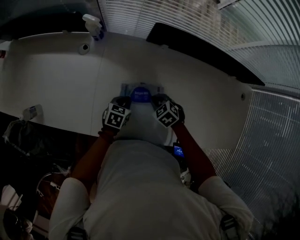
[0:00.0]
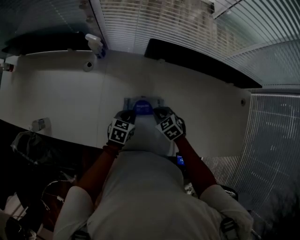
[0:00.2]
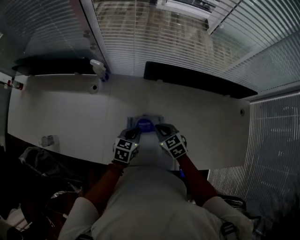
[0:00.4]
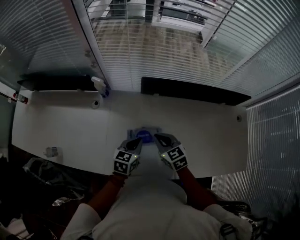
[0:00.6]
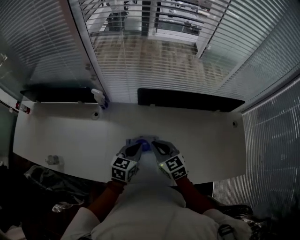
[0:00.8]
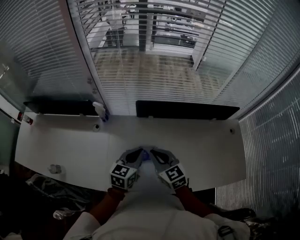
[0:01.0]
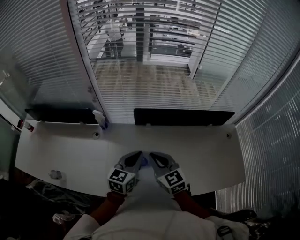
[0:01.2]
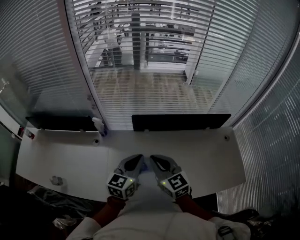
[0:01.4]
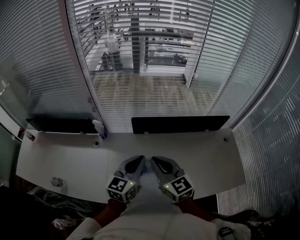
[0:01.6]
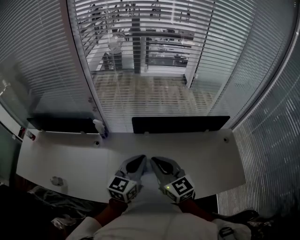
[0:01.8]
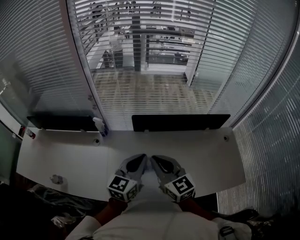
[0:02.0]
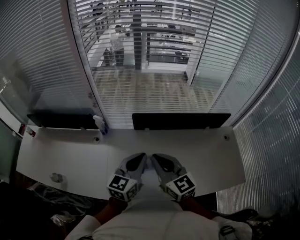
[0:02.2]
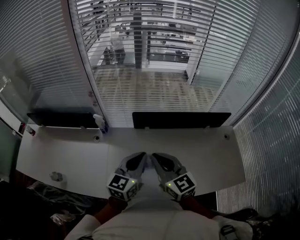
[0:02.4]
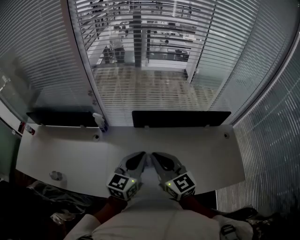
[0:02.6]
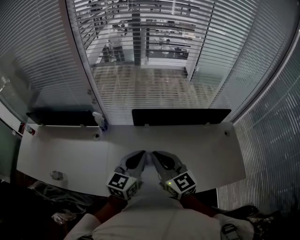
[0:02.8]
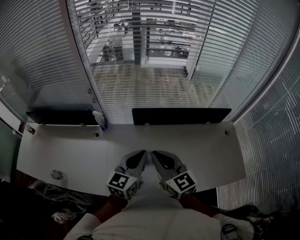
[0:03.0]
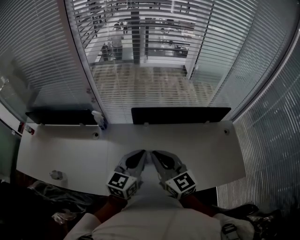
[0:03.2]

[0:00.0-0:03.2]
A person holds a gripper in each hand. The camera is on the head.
0:00.0 to 0:01.6: Both grippers travel together upward, about 40 cm. The right gripper tips its fingers upward by some 60 degrees. Meanwhile the left gripper tilts its fingers roughly 40 degrees upward.
0:01.6 to 0:03.2: The grippers make only small movements.

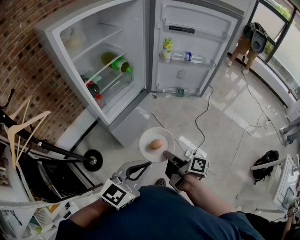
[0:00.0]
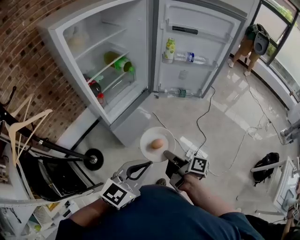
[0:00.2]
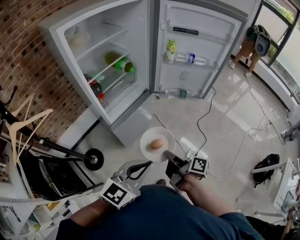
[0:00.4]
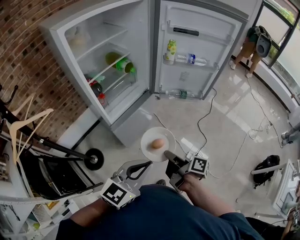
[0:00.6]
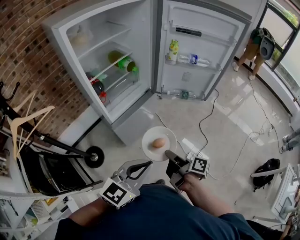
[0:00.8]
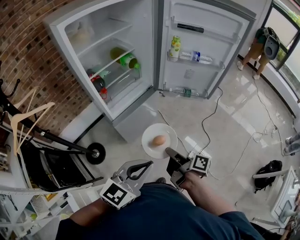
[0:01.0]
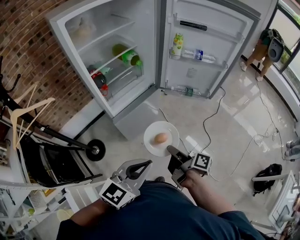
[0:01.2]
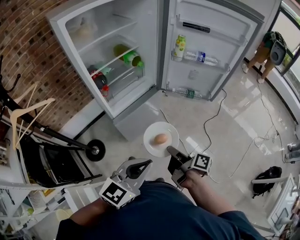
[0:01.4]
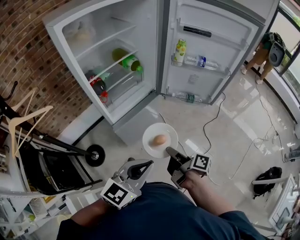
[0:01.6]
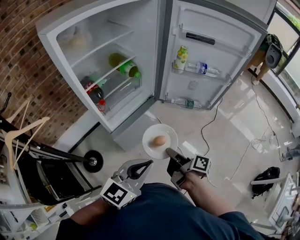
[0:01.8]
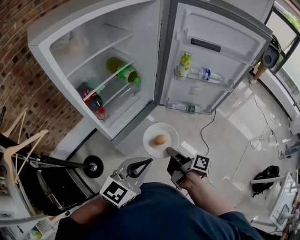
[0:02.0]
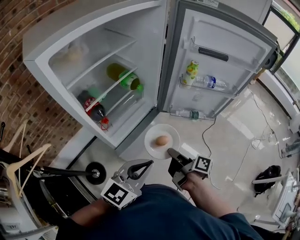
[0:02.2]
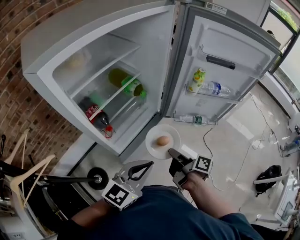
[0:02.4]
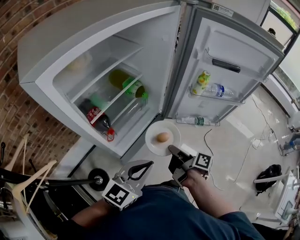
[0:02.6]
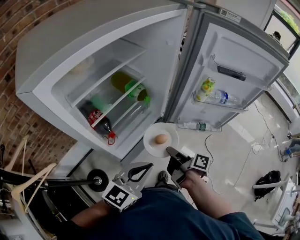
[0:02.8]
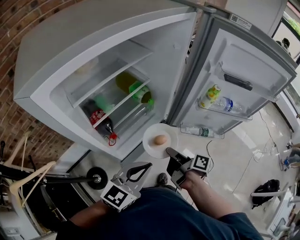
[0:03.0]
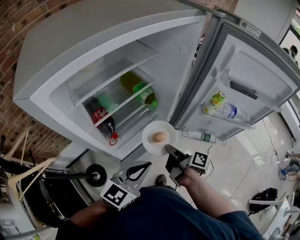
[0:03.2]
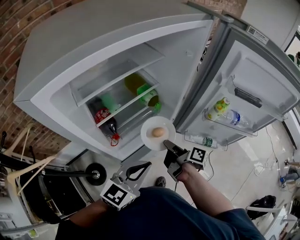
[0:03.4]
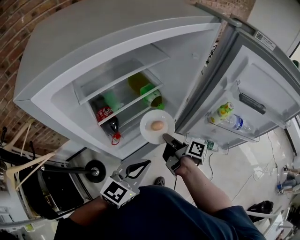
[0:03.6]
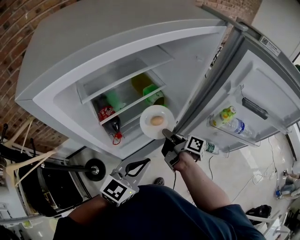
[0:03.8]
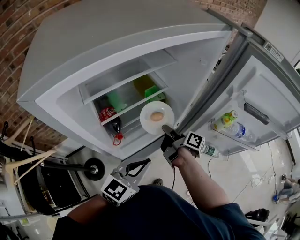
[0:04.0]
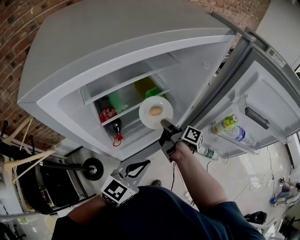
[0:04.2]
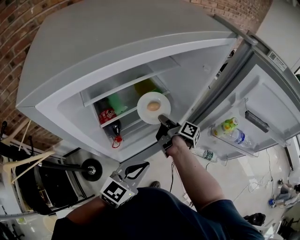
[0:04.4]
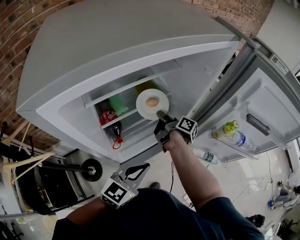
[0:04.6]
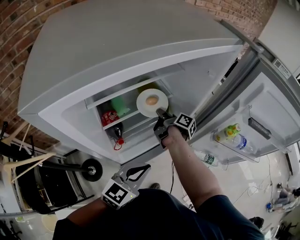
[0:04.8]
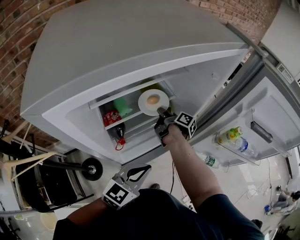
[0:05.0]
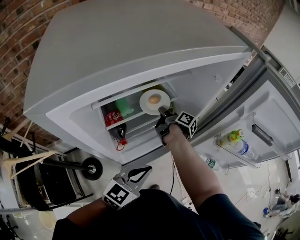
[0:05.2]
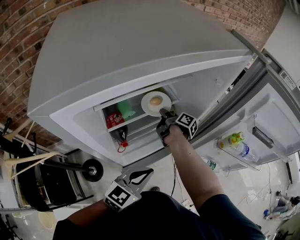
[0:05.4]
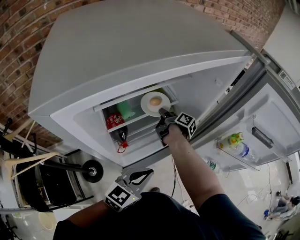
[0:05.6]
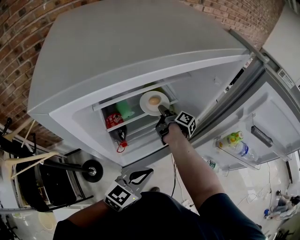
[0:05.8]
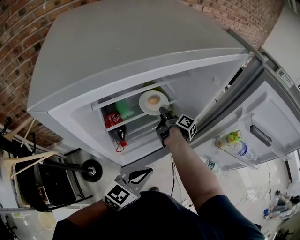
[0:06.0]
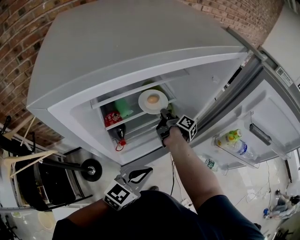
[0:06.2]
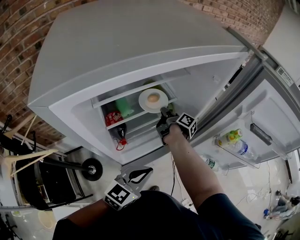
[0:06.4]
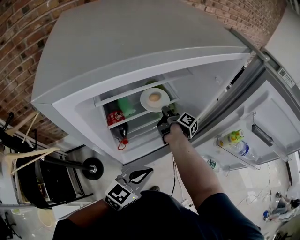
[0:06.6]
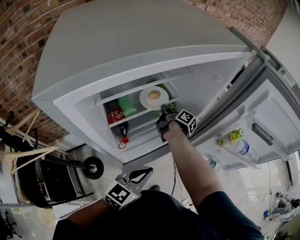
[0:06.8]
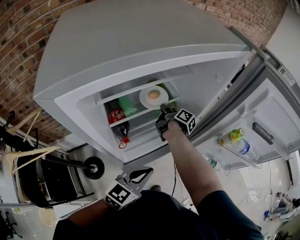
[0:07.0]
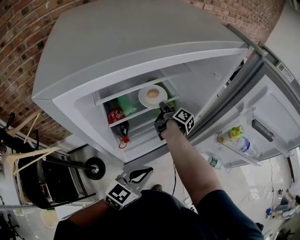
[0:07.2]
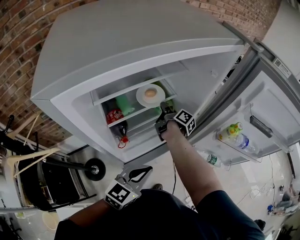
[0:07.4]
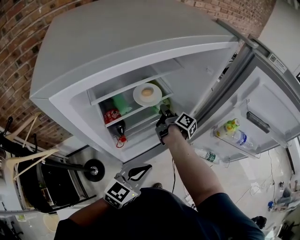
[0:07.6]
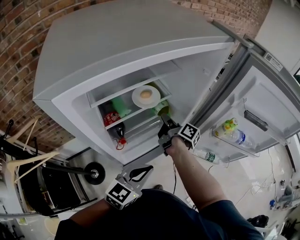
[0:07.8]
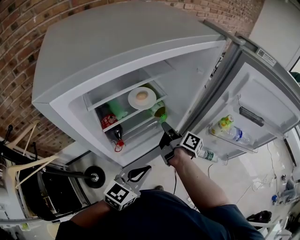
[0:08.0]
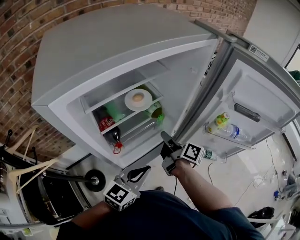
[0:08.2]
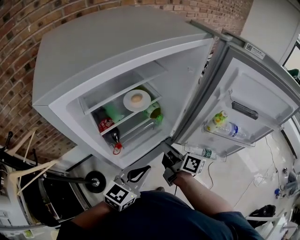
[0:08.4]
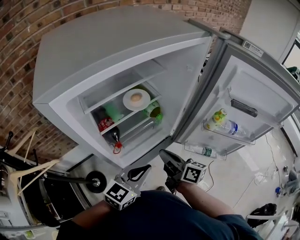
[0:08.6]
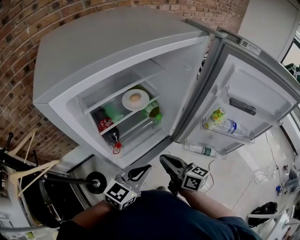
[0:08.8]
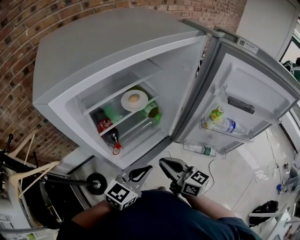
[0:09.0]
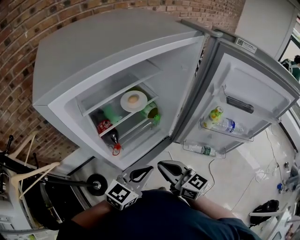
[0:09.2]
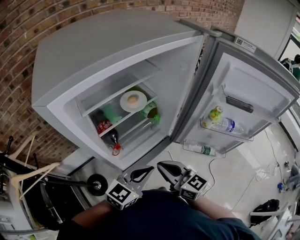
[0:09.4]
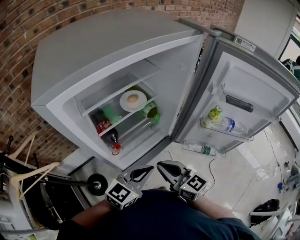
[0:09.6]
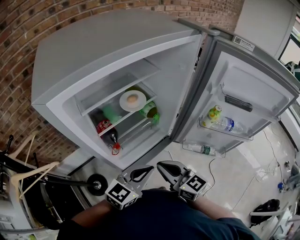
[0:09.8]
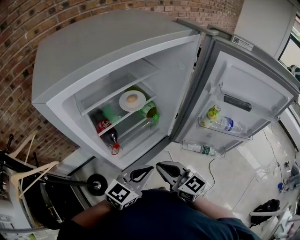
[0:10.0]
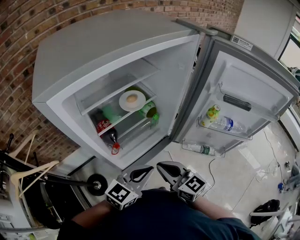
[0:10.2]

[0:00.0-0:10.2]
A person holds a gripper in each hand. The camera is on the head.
0:01.4 to 0:03.0: The left gripper ends up about 30 cm from where it was.
0:03.0 to 0:04.4: The left gripper shifts by approximately 5 cm.

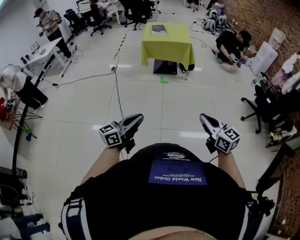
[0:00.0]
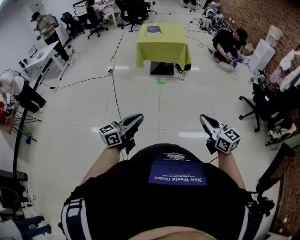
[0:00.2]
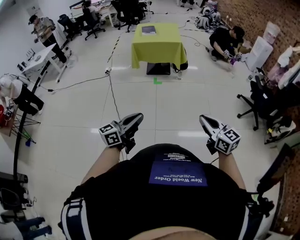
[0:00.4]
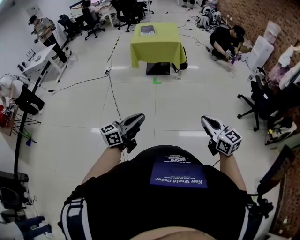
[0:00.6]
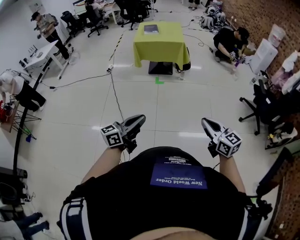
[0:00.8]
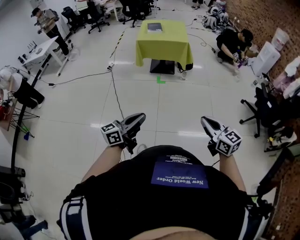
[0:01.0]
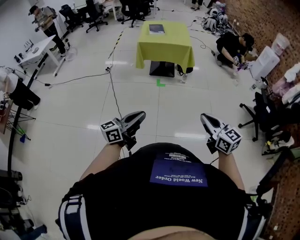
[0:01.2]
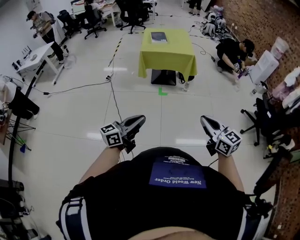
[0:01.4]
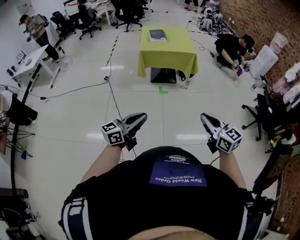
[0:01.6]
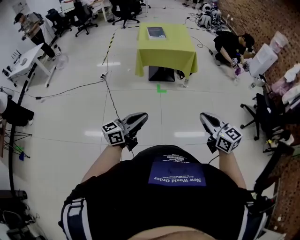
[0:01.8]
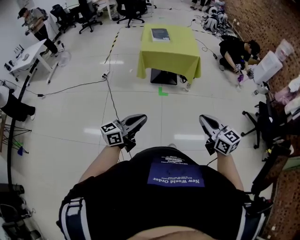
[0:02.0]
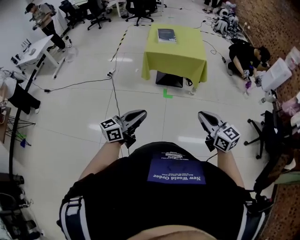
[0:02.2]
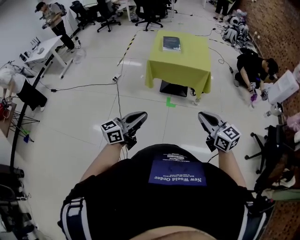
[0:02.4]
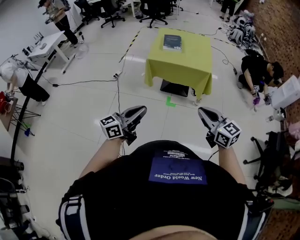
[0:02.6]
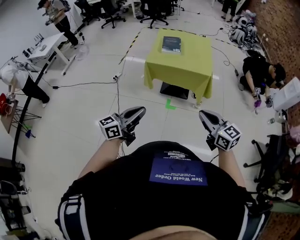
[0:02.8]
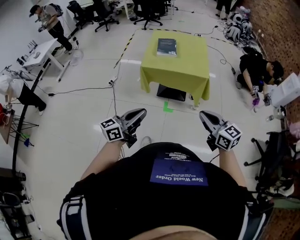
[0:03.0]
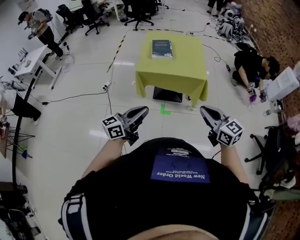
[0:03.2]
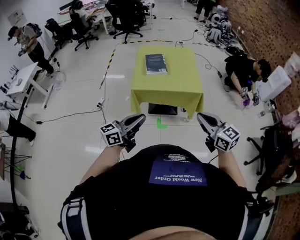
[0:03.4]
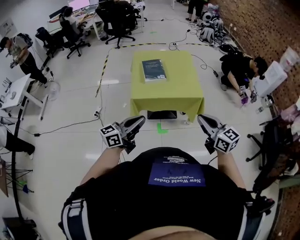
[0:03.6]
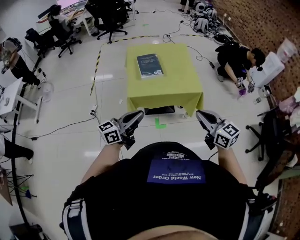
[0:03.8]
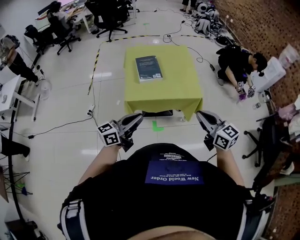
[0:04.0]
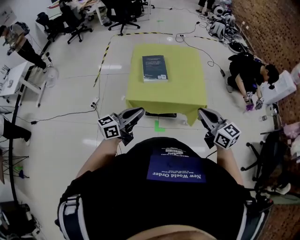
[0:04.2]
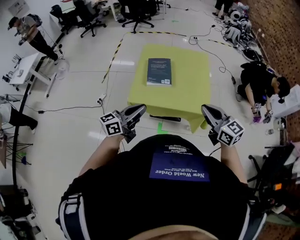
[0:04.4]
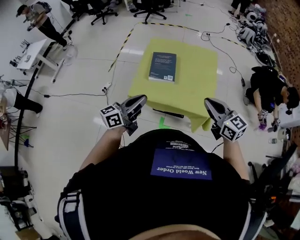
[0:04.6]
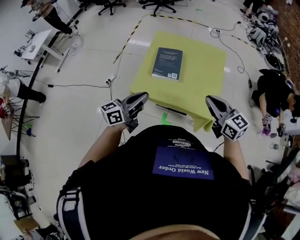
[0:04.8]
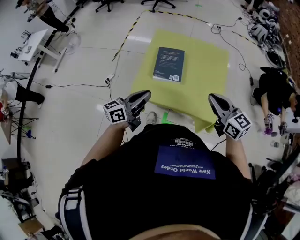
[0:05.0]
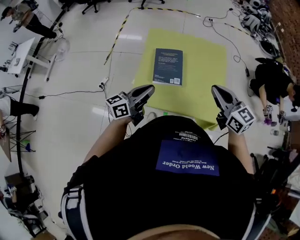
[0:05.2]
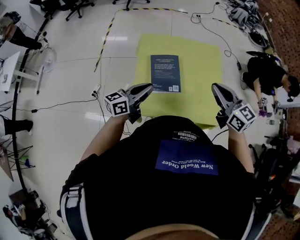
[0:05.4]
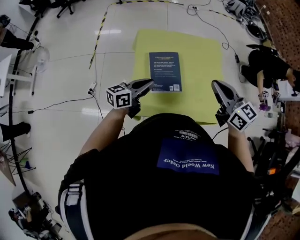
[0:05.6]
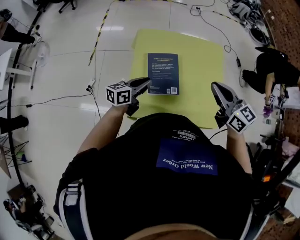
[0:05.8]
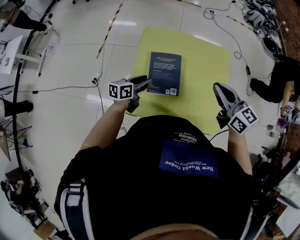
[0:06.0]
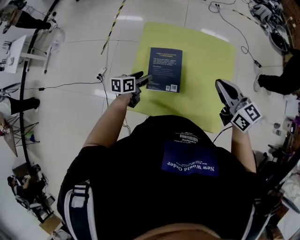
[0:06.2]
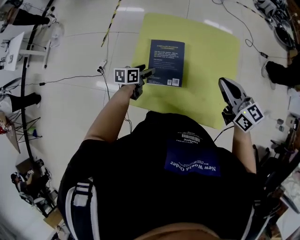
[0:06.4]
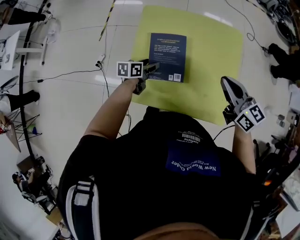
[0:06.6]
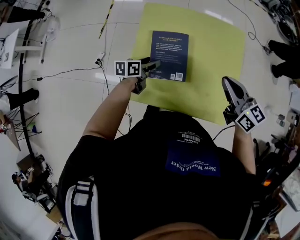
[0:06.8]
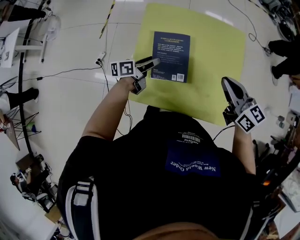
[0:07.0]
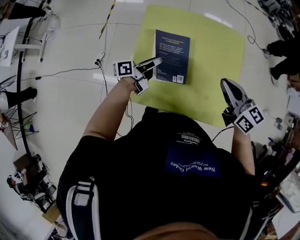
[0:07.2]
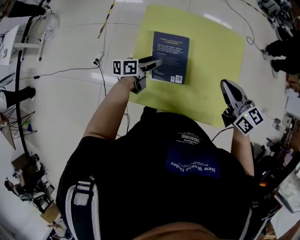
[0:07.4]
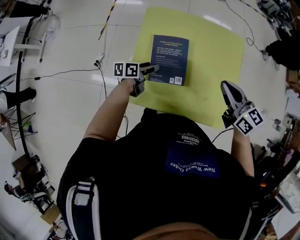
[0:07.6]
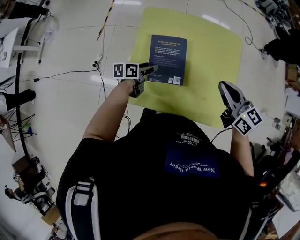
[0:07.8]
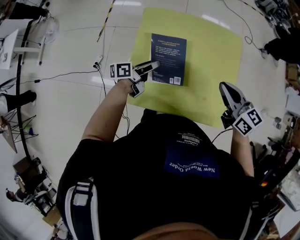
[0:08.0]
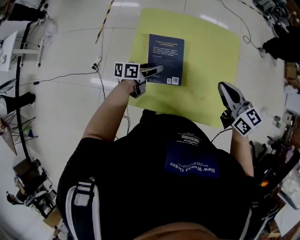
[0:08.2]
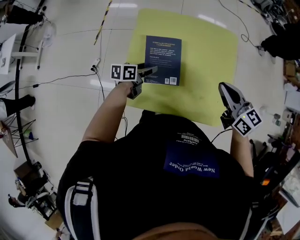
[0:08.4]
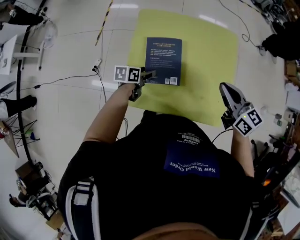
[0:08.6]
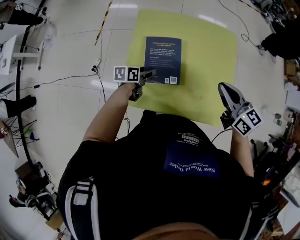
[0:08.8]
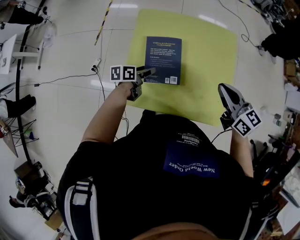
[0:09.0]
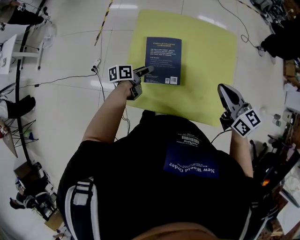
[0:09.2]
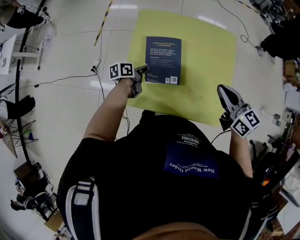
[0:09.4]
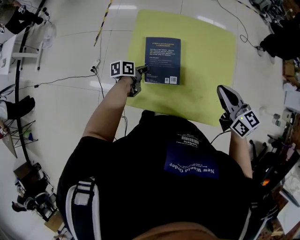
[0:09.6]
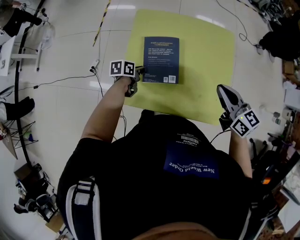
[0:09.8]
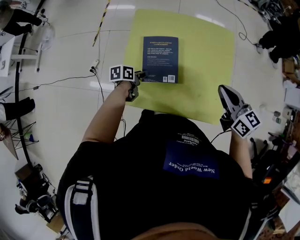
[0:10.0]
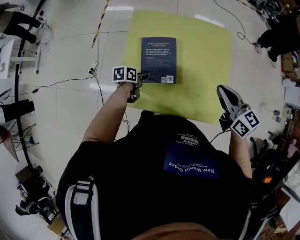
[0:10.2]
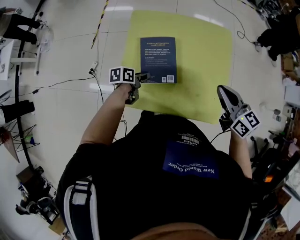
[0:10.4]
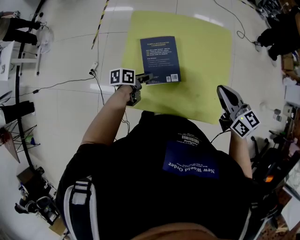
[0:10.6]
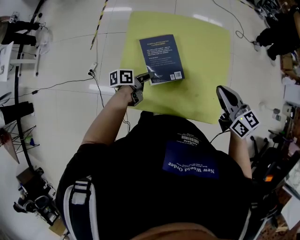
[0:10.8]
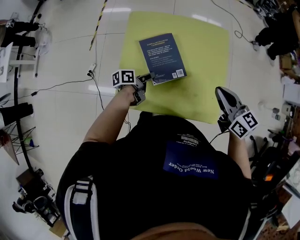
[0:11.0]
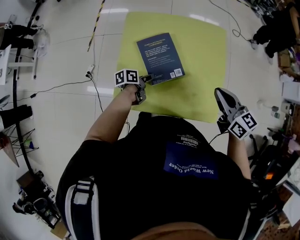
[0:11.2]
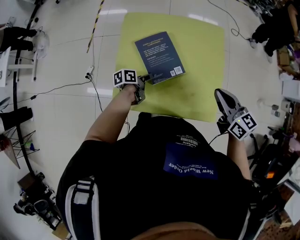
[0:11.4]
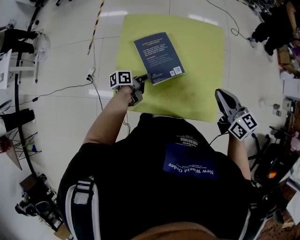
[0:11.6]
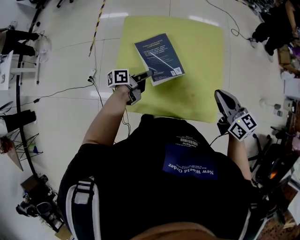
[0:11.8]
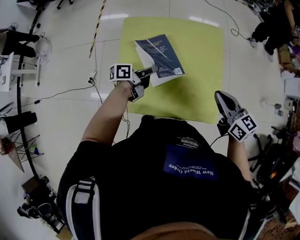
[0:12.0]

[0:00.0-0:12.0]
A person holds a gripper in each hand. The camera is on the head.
0:00.0 to 0:01.6: Both grippers move forward and to the left, some 25 cm.
0:01.6 to 0:03.0: Both grippers move forward, some 40 cm.
0:03.0 to 0:04.4: The grippers both shift forward by some 40 cm.
0:04.4 to 0:06.0: The left gripper heads forward and downward, covering about 40 cm, turns by approximately 30 degrees, and opens up; the right gripper shifts some 30 cm forward.
0:06.0 to 0:07.6: The left gripper swings up and down, some 10 cm each way, with 2 reversals, and opens its fingers; the right gripper shifts some 5 cm downward.
0:07.6 to 0:09.0: The grippers move only a little.
0:09.0 to 0:10.4: The left gripper closes, then reopens.
0:10.4 to 0:12.0: The left gripper moves upward, to the right and forward, approximately 15 cm, changes its angle by approximately 30 degrees, and closes its fingers.
